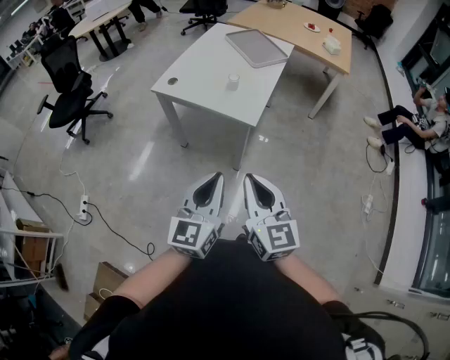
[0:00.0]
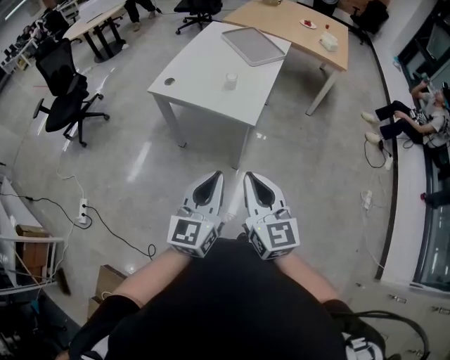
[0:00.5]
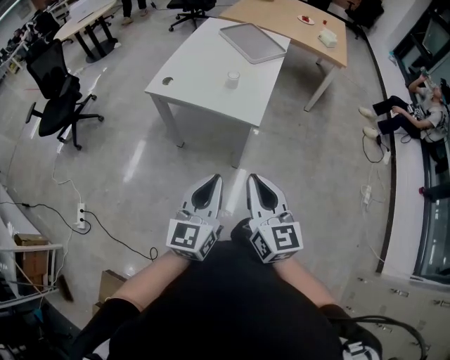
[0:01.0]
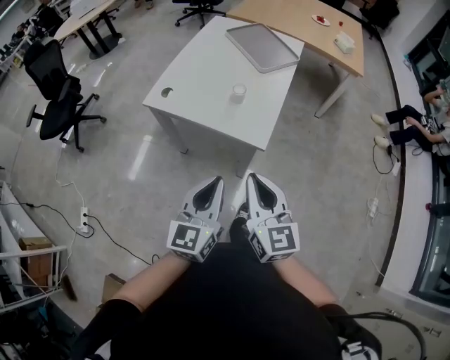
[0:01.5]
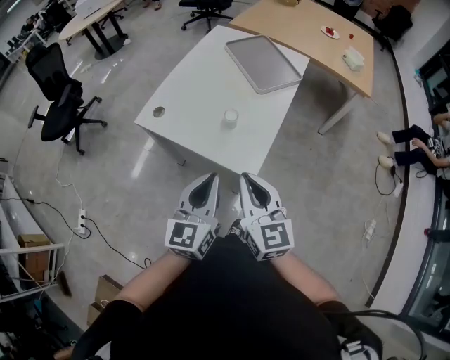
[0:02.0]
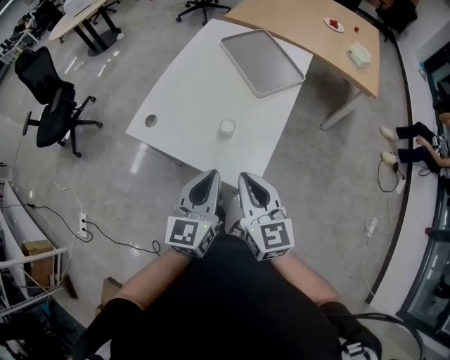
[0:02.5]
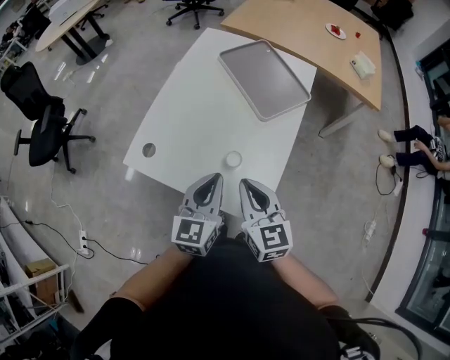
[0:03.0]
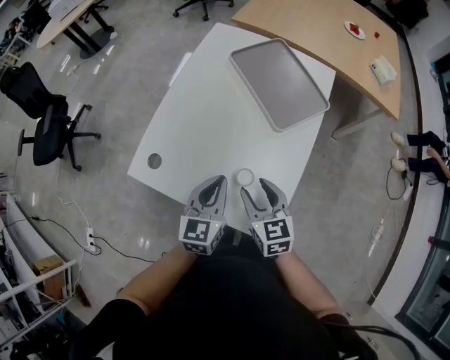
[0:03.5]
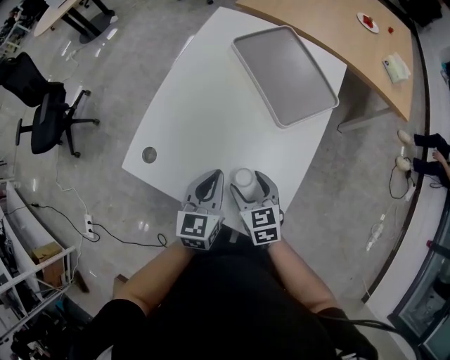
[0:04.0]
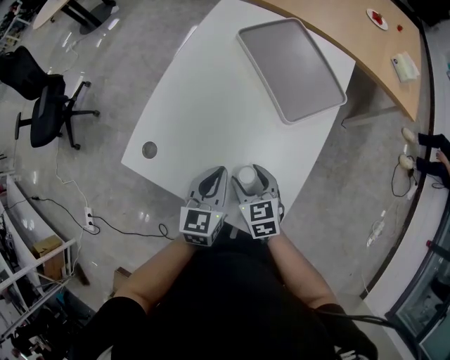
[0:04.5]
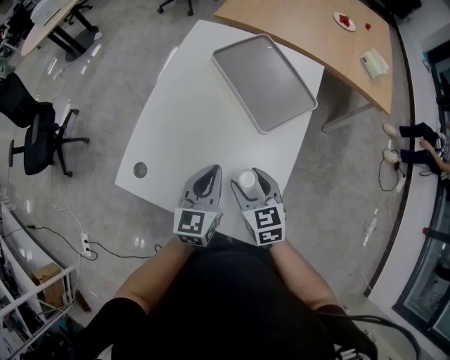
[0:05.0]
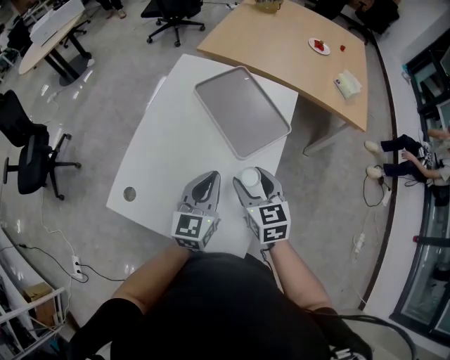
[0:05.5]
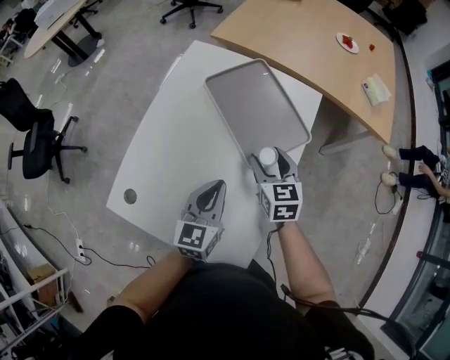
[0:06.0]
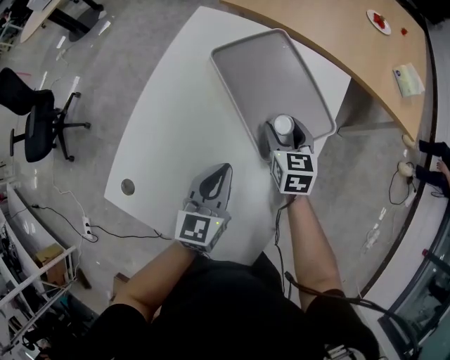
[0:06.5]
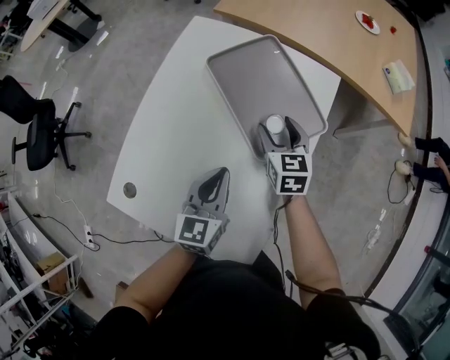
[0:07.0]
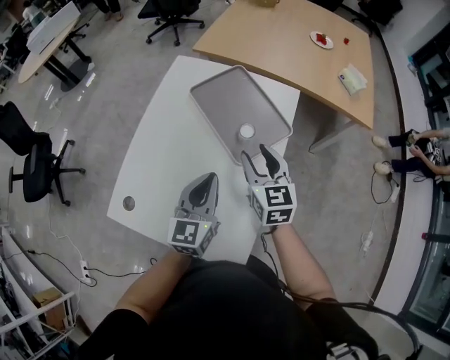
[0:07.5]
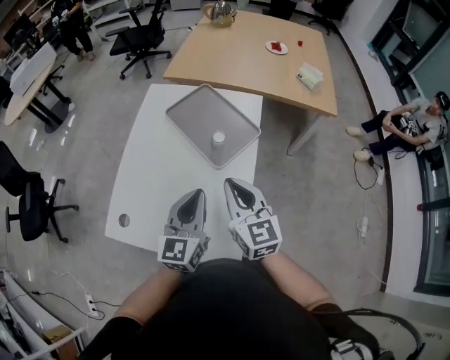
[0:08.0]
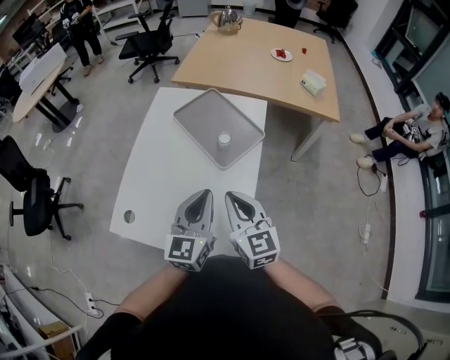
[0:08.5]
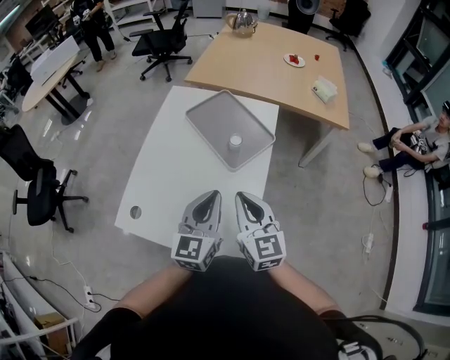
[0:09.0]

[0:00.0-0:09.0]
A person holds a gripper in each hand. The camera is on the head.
0.0 to 2.0 s: Both grippers move forward, some 30 cm.
2.0 to 4.5 s: The two grippers go roughly 40 cm forward and downward. The right gripper tilts its fingers about 30 degrees downward, and opens its fingers.
4.5 to 7.0 s: The left gripper moves forward and to the right, roughly 15 cm. Meanwhile the right gripper shifts approximately 30 cm forward and to the right.
7.0 to 9.0 s: The left gripper is displaced upward and backward by some 20 cm. The right gripper goes approximately 35 cm backward and upward, rotates some 20 degrees, and closes.

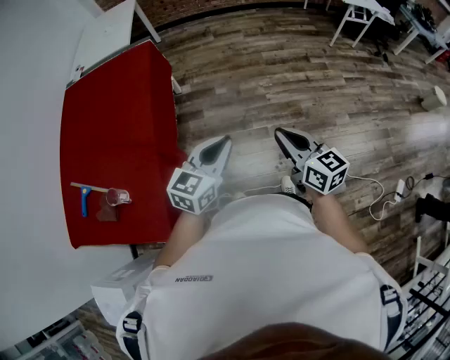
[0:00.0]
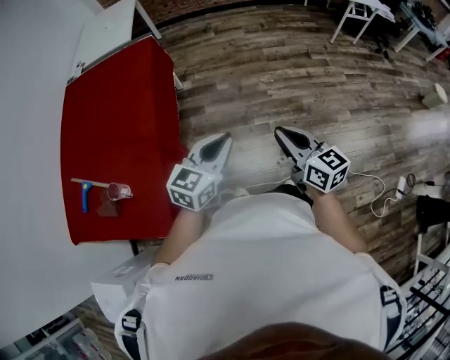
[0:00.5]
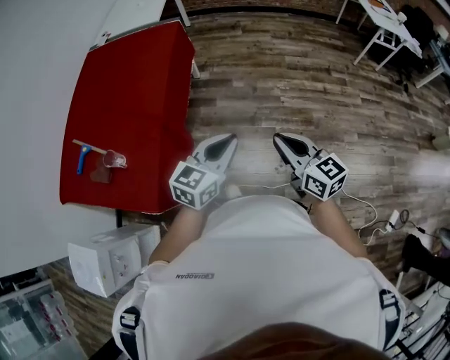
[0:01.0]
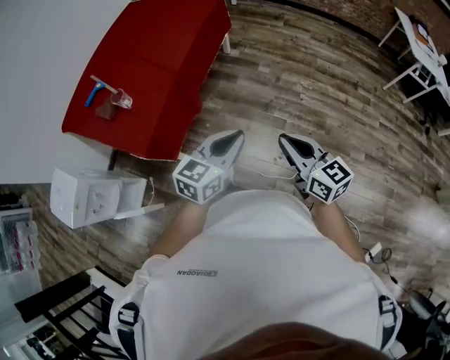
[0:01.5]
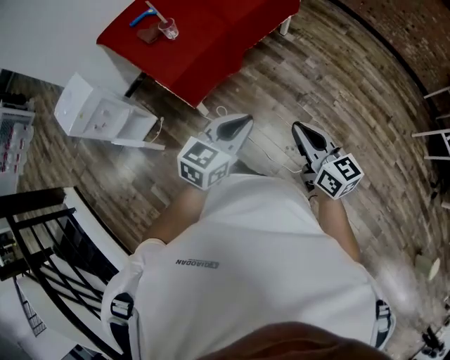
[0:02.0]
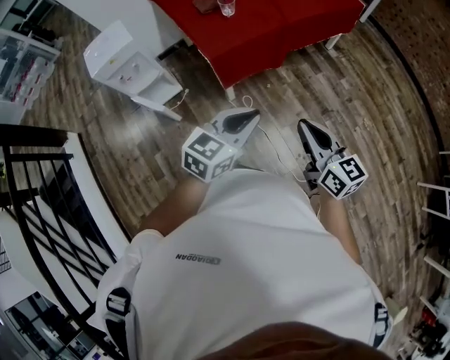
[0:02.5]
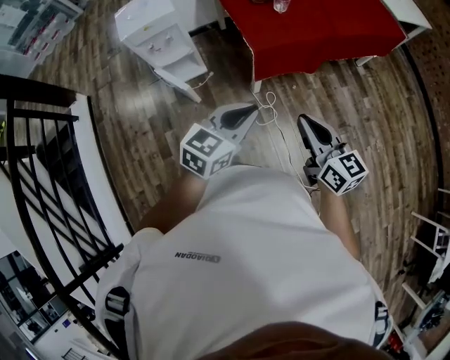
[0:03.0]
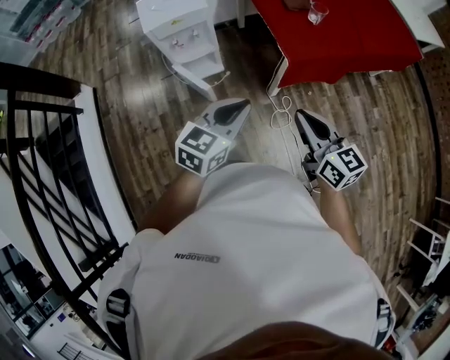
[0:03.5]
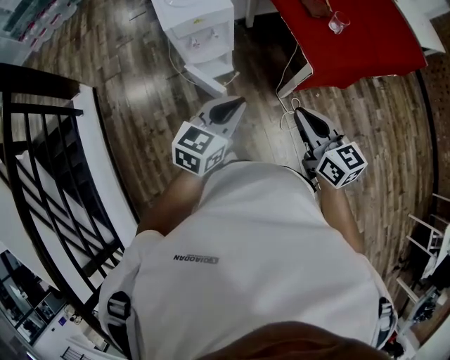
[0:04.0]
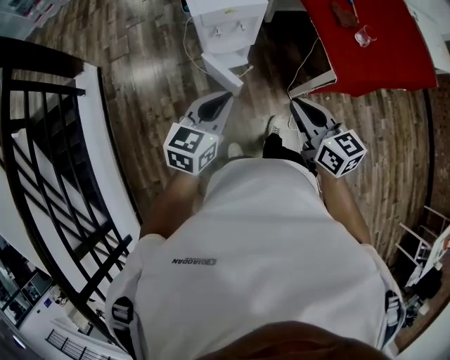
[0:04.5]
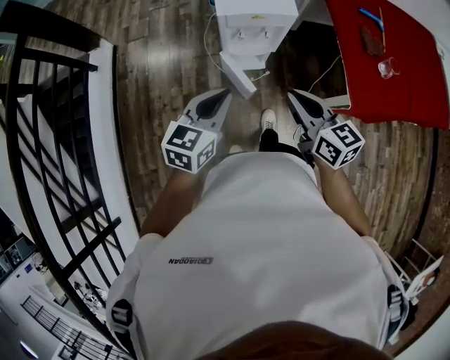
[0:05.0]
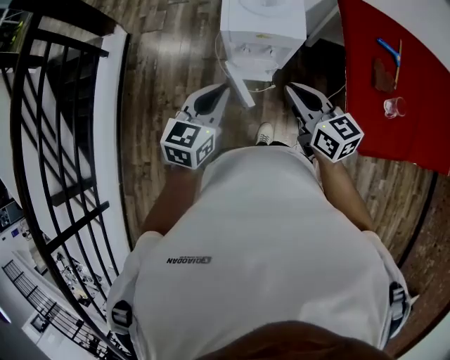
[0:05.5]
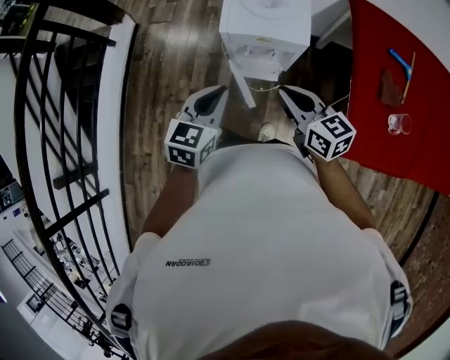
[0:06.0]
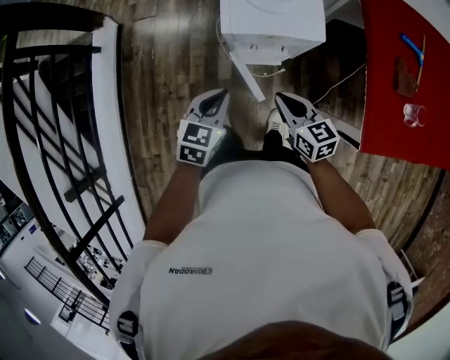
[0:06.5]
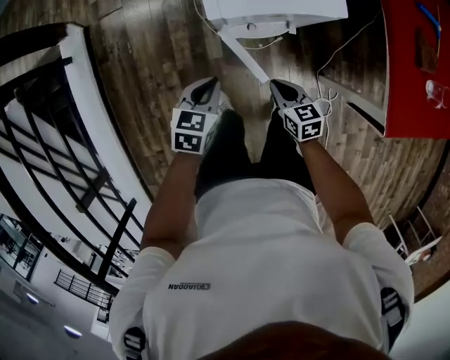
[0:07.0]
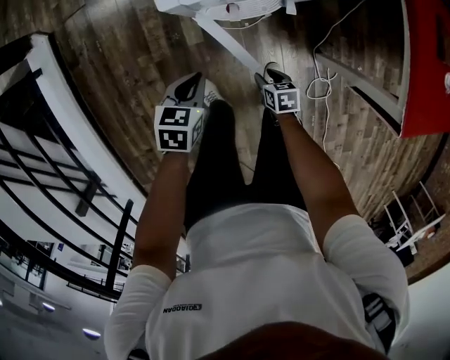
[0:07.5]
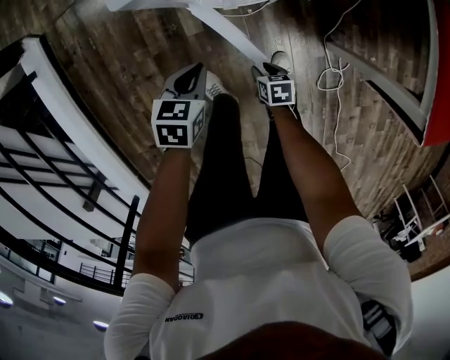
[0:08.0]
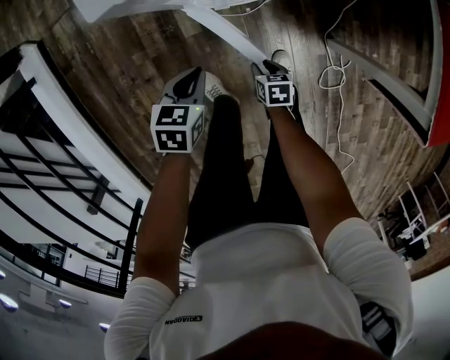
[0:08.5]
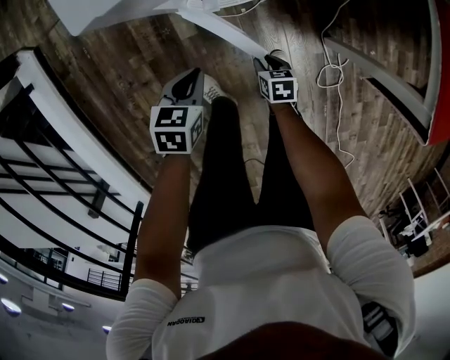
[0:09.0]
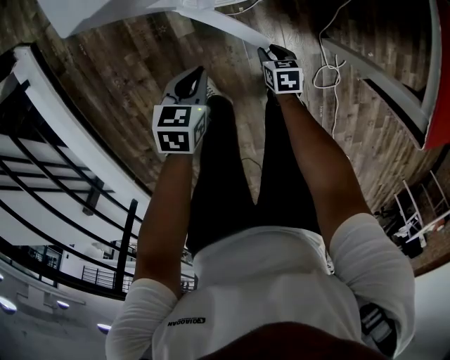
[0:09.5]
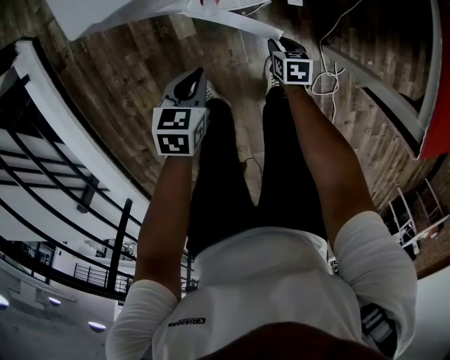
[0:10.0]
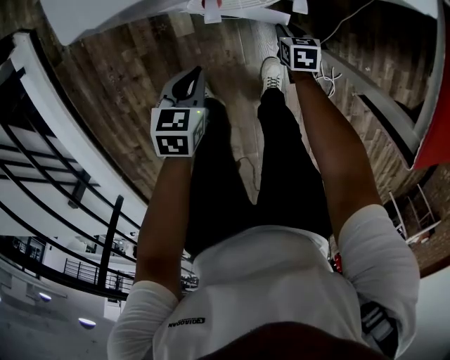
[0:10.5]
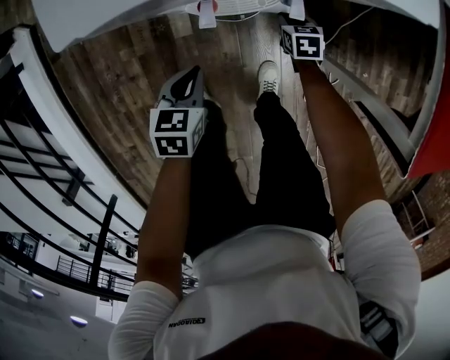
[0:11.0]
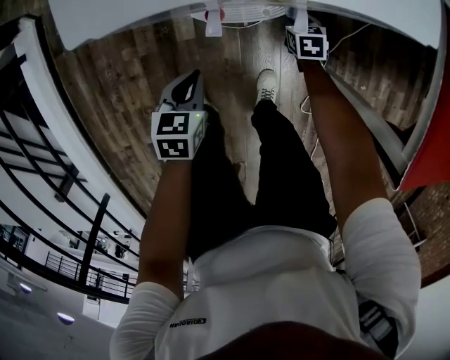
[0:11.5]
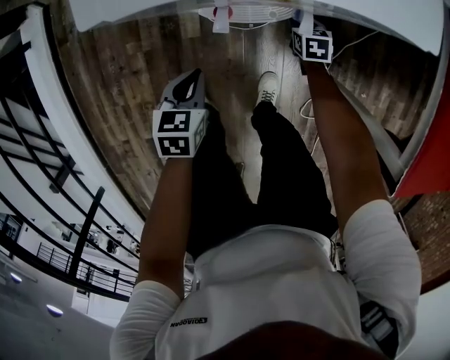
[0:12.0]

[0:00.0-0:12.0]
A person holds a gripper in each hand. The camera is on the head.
0.0 to 2.0 s: The right gripper shifts by roughly 20 cm, and swivels roughly 50 degrees, while the left gripper shifts by roughly 25 cm, and swivels approximately 40 degrees.
2.0 to 4.0 s: The pair of grippers is taken roughly 50 cm. The left gripper turns by some 30 degrees, while the right gripper changes its angle by approximately 30 degrees.
4.0 to 6.0 s: The right gripper changes place by approximately 35 cm, and swivels some 40 degrees. The left gripper moves about 25 cm, and changes its angle by about 40 degrees.
6.0 to 8.0 s: Both grippers travel together downward, roughly 50 cm. The right gripper points its fingers about 50 degrees further downward, and opens. Meanwhile the left gripper rotates approximately 30 degrees.
8.0 to 10.0 s: The right gripper travels forward and to the right by some 15 cm.
10.0 to 12.0 s: The right gripper shifts approximately 15 cm forward.

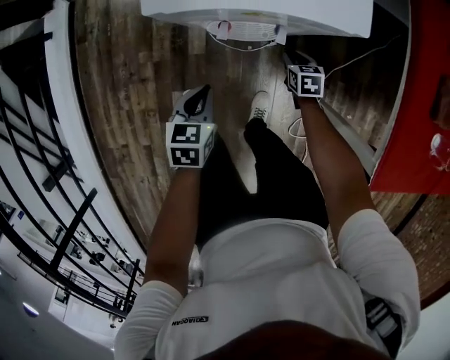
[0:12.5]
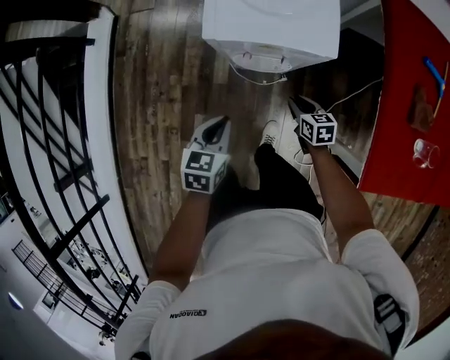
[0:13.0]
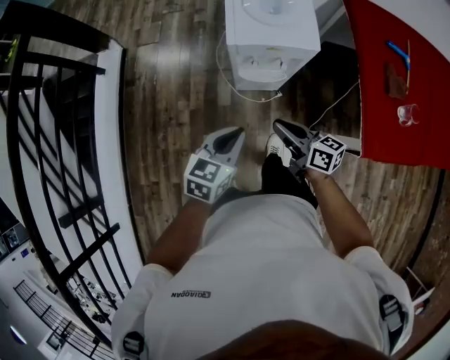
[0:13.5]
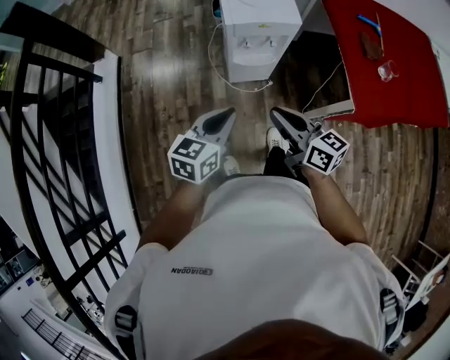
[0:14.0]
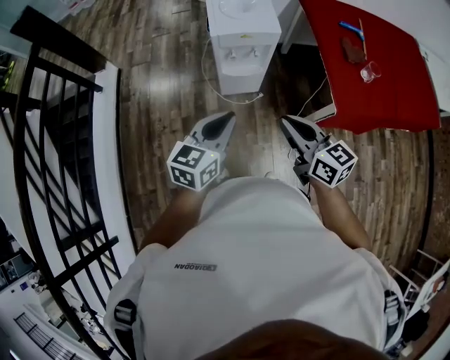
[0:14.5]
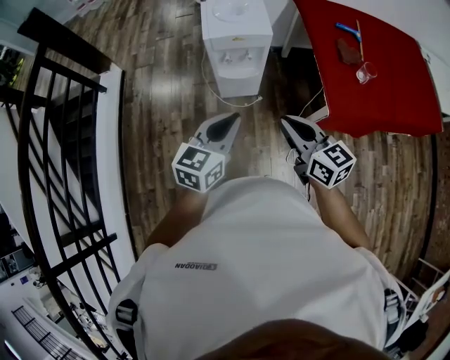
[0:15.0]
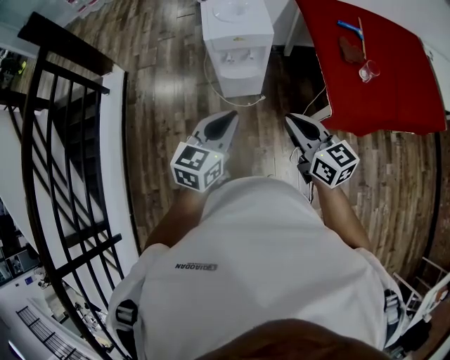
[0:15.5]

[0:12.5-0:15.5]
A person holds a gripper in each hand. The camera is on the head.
12.5 to 14.0 s: The left gripper shifts roughly 40 cm upward and backward, and points its fingers approximately 30 degrees further upward; the right gripper travels upward, backward and to the left by about 60 cm, and angles its fingers upward, by approximately 50 degrees.
14.0 to 15.5 s: The left gripper is displaced to the right and upward by about 15 cm. The right gripper travels to the right by approximately 15 cm.

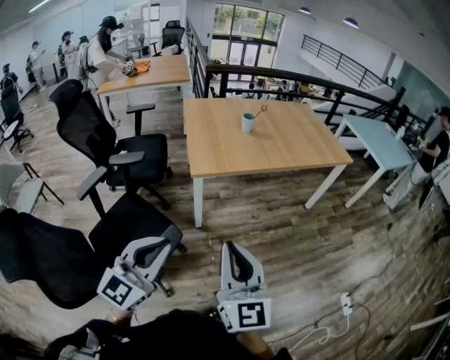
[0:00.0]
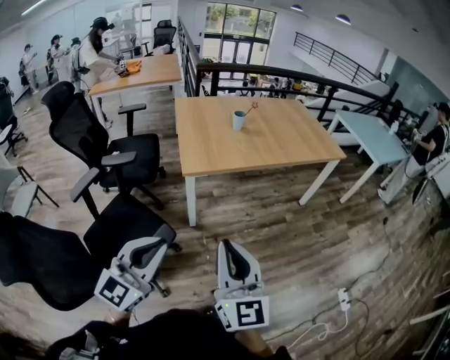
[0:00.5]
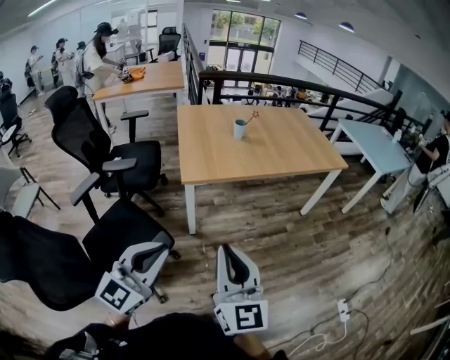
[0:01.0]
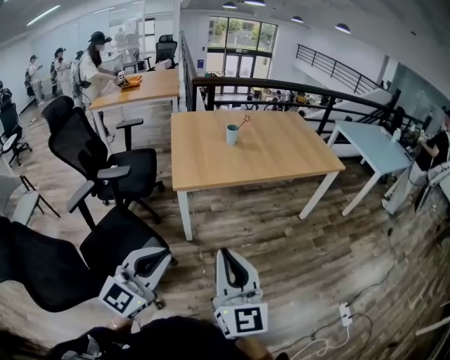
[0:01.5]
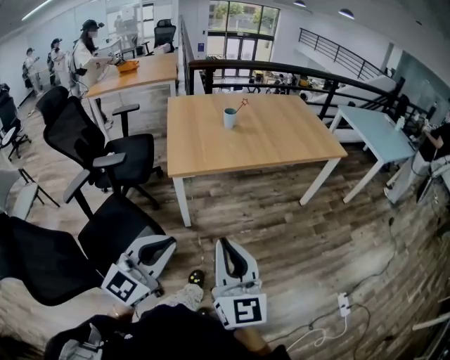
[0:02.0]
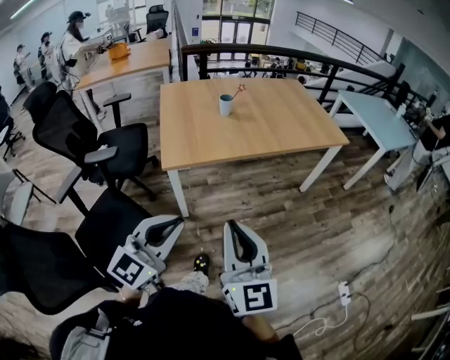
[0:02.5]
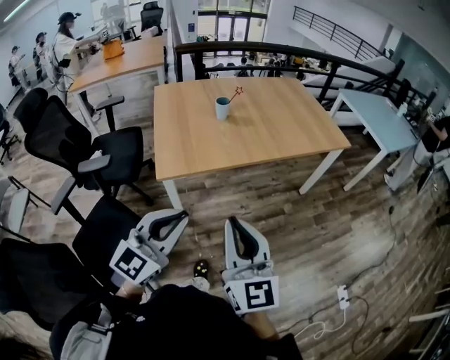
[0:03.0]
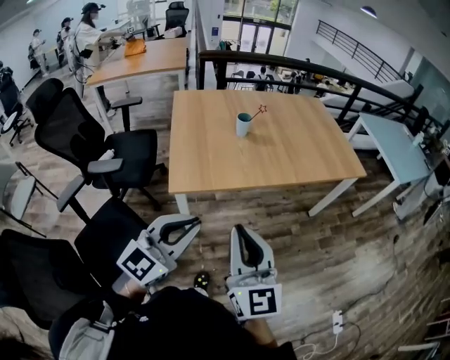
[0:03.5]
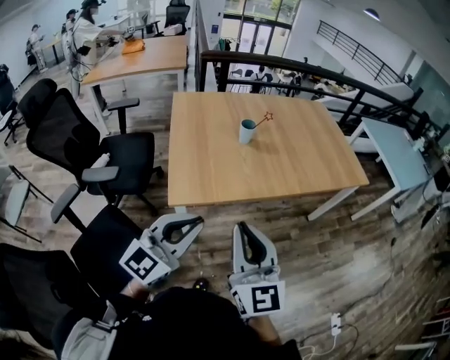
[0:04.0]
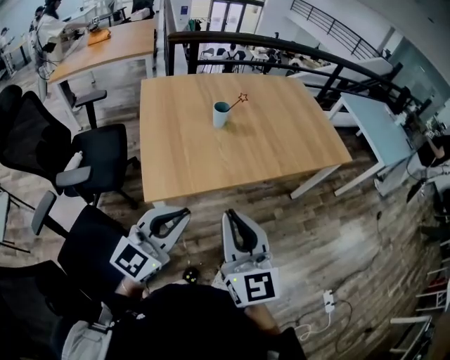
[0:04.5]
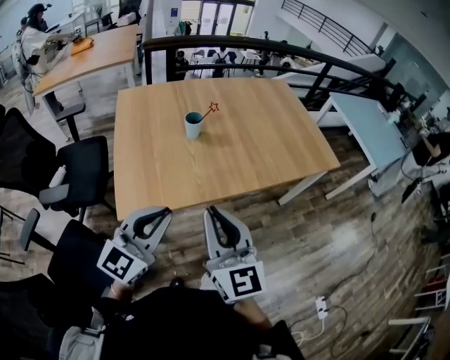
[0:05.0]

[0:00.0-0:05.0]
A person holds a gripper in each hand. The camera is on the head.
0.0 to 2.5 s: Both grippers travel together forward and to the right, about 20 cm.
2.5 to 5.0 s: The grippers both shift forward by about 35 cm.
